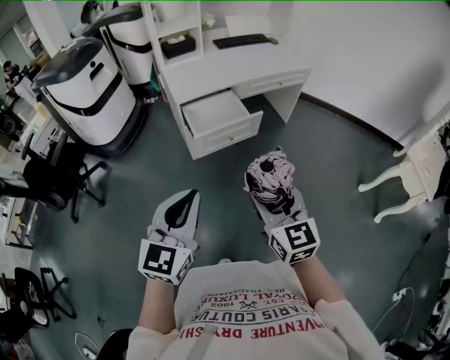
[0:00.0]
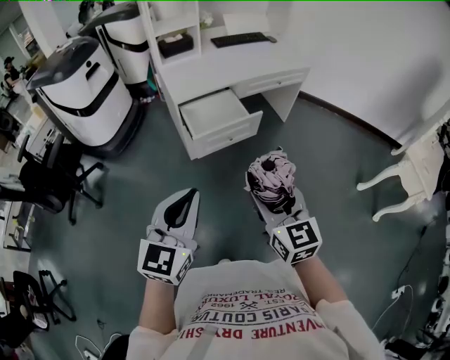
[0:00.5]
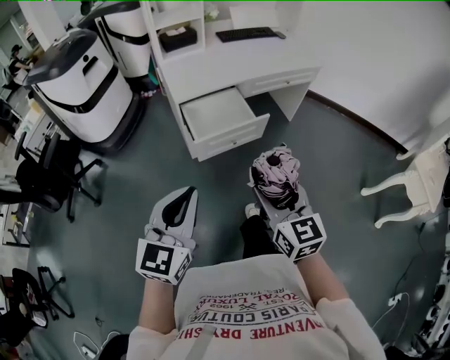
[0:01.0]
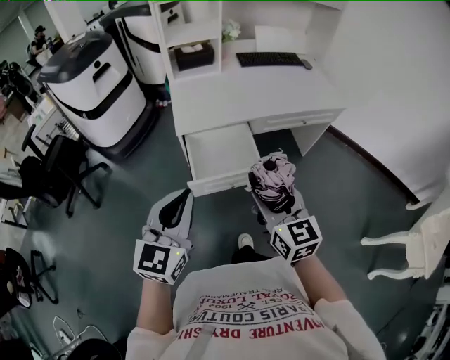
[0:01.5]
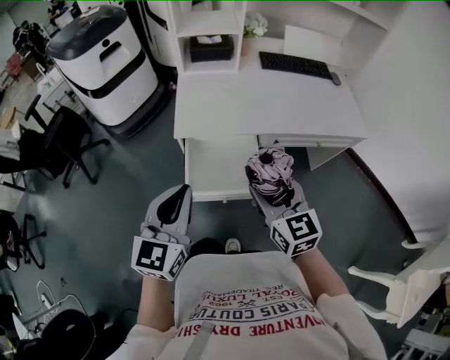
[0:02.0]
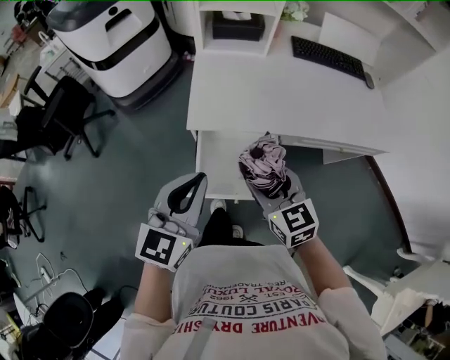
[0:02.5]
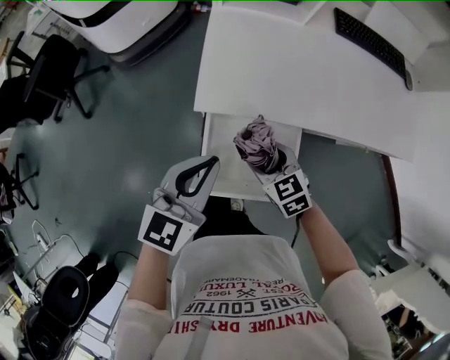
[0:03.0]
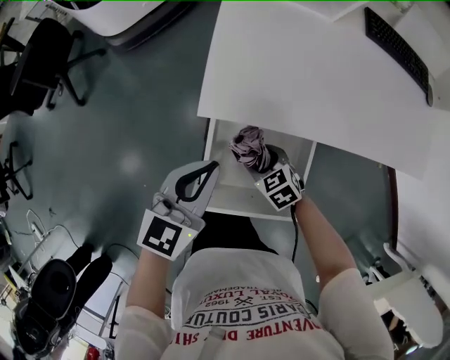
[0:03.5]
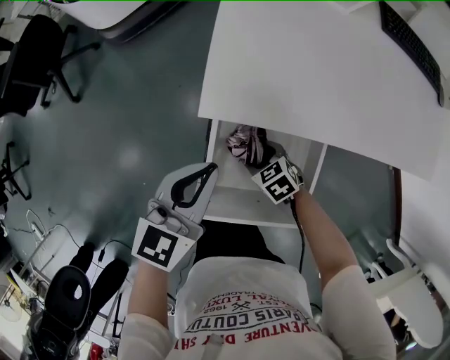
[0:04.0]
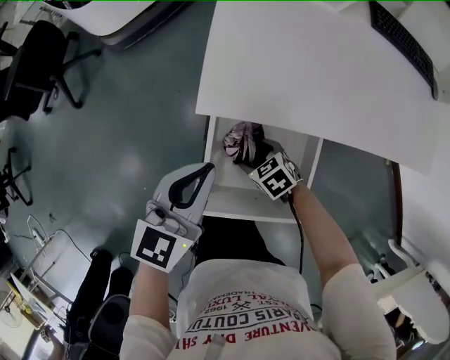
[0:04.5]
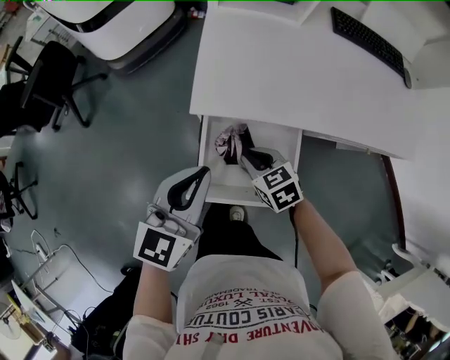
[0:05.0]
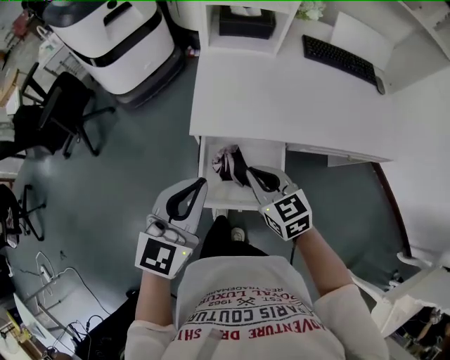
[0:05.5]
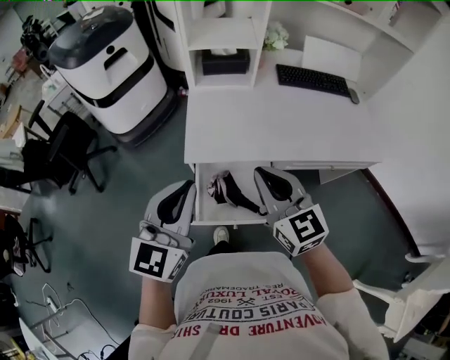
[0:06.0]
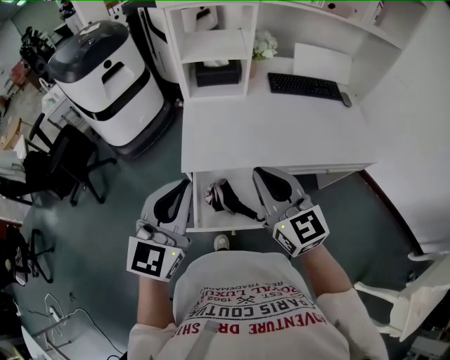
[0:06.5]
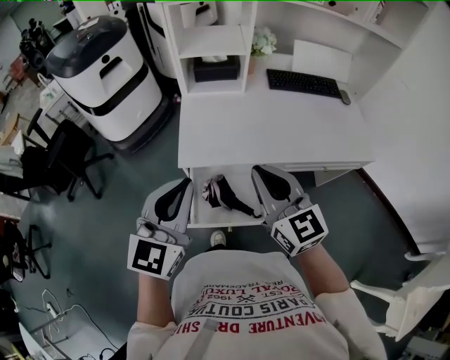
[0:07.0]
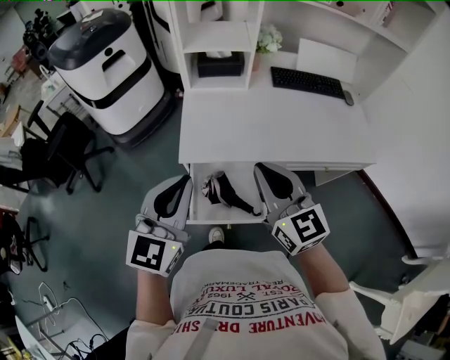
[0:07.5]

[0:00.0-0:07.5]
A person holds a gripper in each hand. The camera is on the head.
0:00.0 to 0:02.0: Both grippers travel together forward, some 40 cm. The left gripper turns by some 30 degrees, while the right gripper turns by roughly 20 degrees.
0:02.0 to 0:04.0: The right gripper goes some 50 cm downward, and tips its fingers downward by some 50 degrees, while the left gripper is displaced downward and forward by about 30 cm.
0:04.0 to 0:05.5: The right gripper goes some 30 cm upward, tips its fingers upward by some 30 degrees, and closes. Meanwhile the left gripper goes approximately 20 cm upward.
0:05.5 to 0:07.5: The left gripper goes about 10 cm upward; the right gripper heads upward, covering some 20 cm, and turns by some 30 degrees.

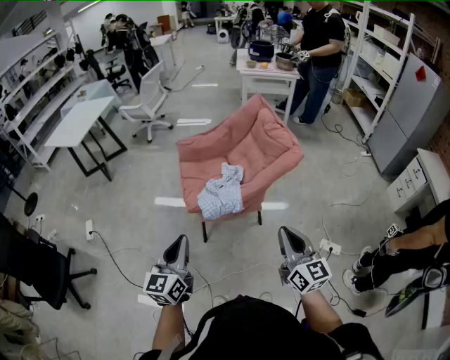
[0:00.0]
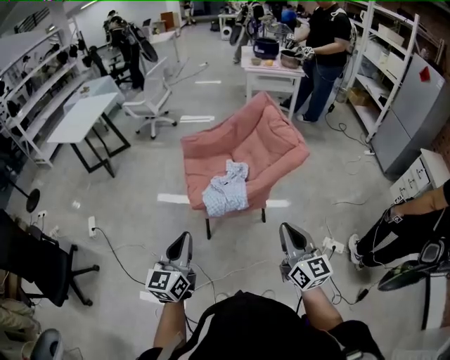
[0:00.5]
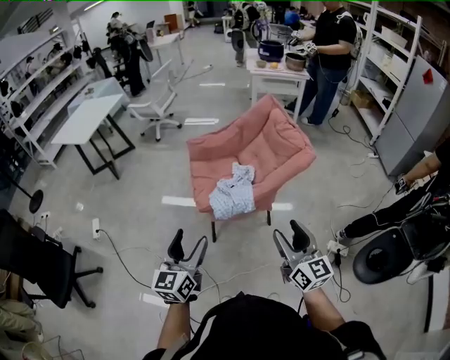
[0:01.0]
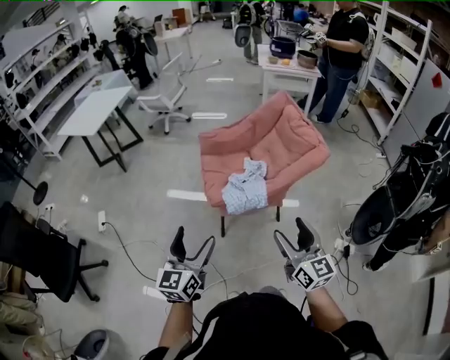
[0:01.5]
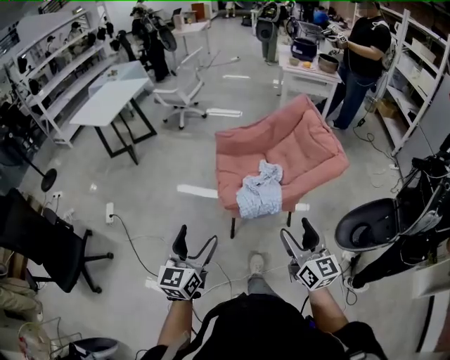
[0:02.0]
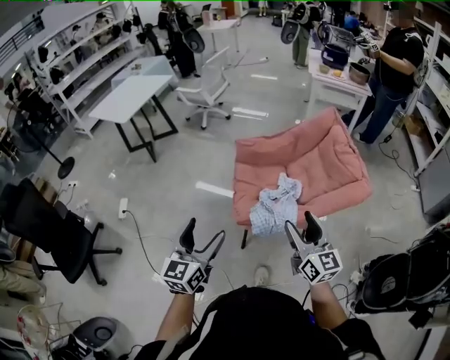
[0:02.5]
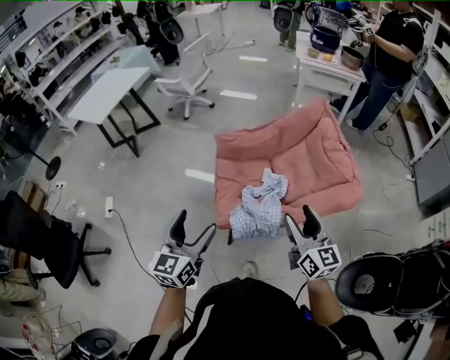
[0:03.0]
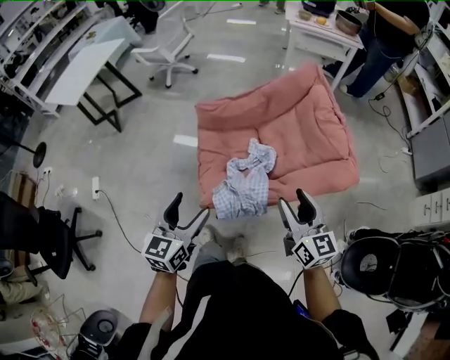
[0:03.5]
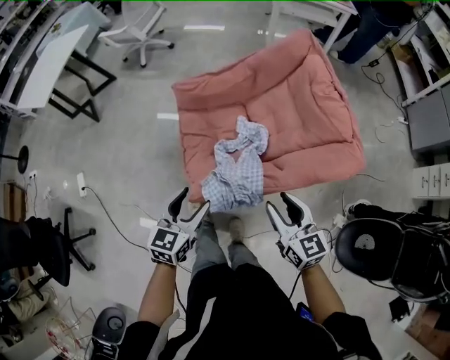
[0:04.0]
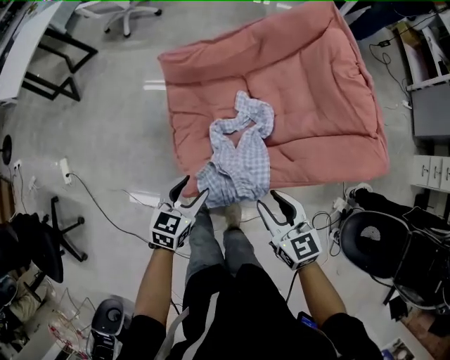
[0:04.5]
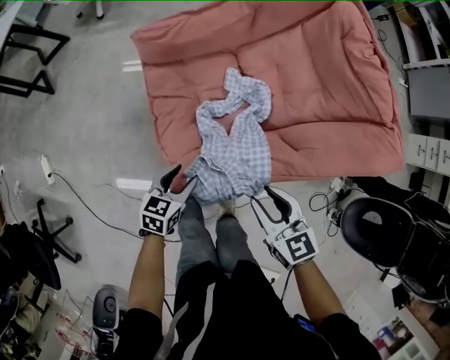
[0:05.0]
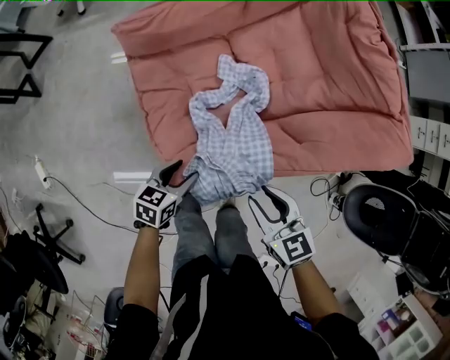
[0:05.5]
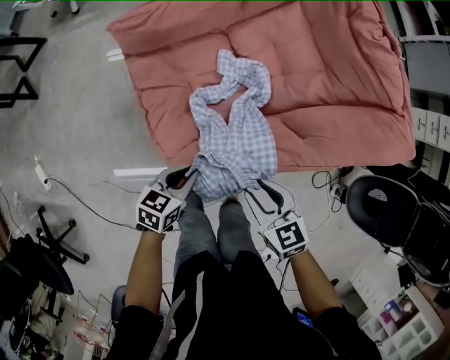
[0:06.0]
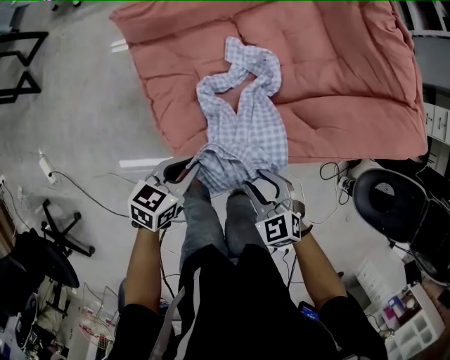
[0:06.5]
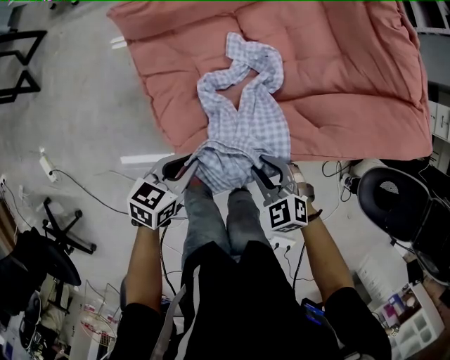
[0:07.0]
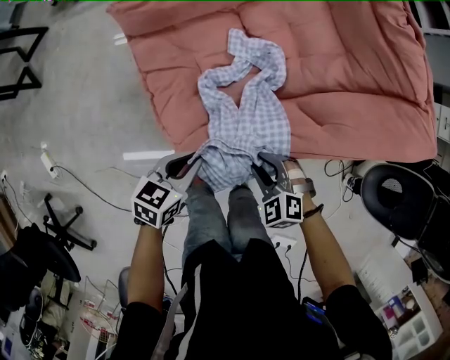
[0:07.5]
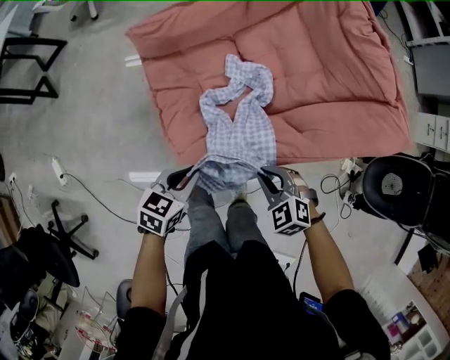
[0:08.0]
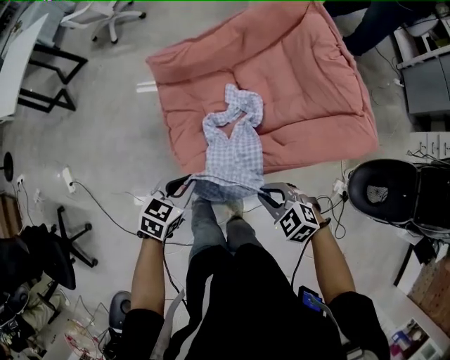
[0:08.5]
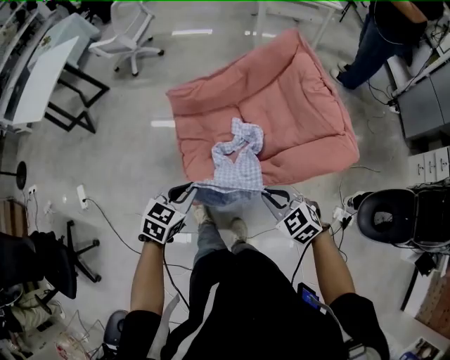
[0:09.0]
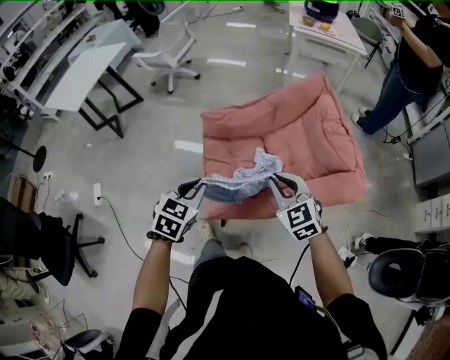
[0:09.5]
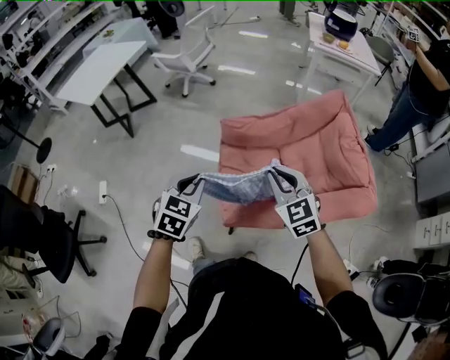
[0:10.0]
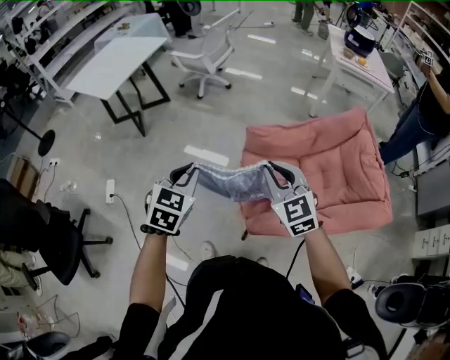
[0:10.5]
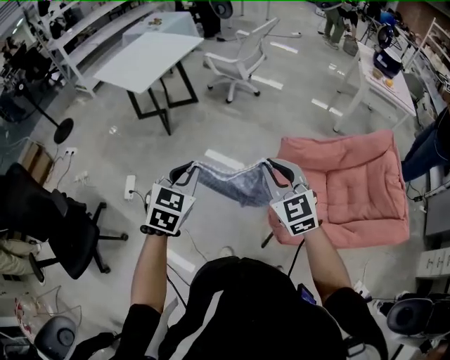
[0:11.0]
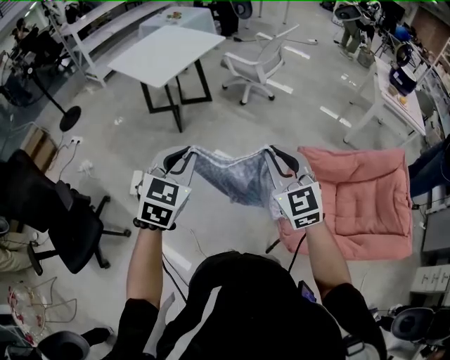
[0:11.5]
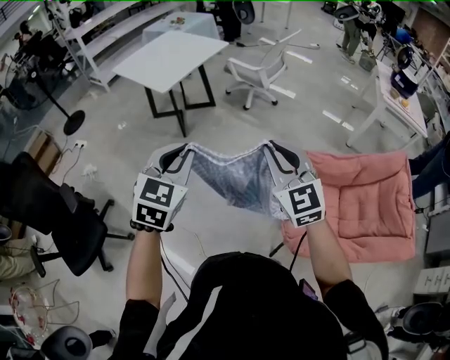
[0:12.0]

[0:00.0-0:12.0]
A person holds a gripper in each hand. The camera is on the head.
0:00.0 to 0:02.0: The left gripper moves to the left, roughly 10 cm, and opens its fingers. Meanwhile the right gripper heads to the left and forward, covering approximately 15 cm, and opens its fingers.
0:02.0 to 0:04.0: The right gripper goes approximately 30 cm forward and downward, and closes its fingers. The left gripper goes roughly 40 cm forward, downward and to the right, and changes its angle by some 30 degrees.
0:04.0 to 0:06.0: The two grippers go about 25 cm downward. The left gripper turns by some 40 degrees, and closes. Meanwhile the right gripper rotates approximately 20 degrees.
0:06.0 to 0:08.0: The left gripper heads upward, covering roughly 5 cm; the right gripper moves roughly 10 cm downward and comes back, and rotates about 40 degrees.
0:08.0 to 0:10.0: The left gripper shifts roughly 35 cm upward and to the left, and swivels about 40 degrees. Meanwhile the right gripper moves upward, roughly 35 cm, and points its fingers roughly 30 degrees further upward.
0:10.0 to 0:12.0: The pair of grippers is taken to the left, about 50 cm. The right gripper turns by about 20 degrees, while the left gripper changes its angle by about 20 degrees.

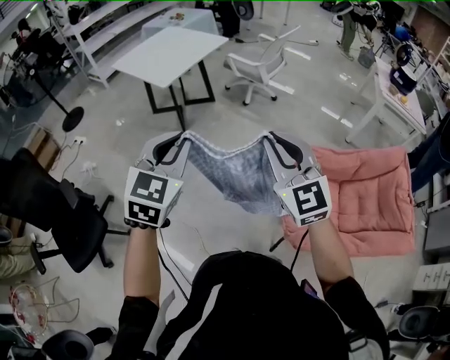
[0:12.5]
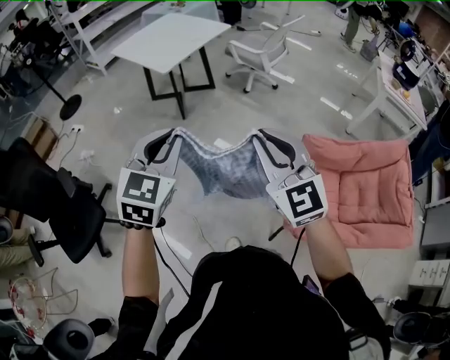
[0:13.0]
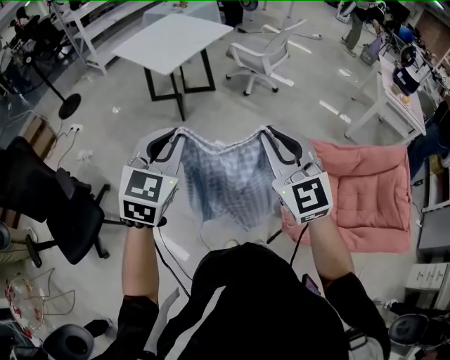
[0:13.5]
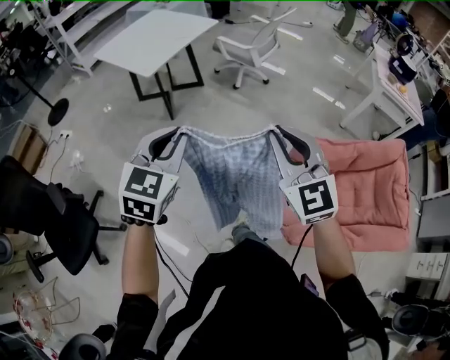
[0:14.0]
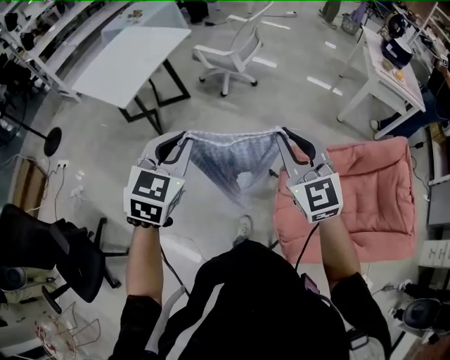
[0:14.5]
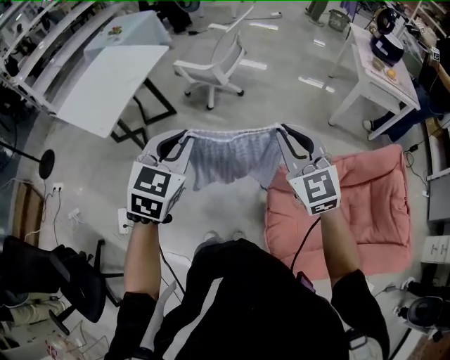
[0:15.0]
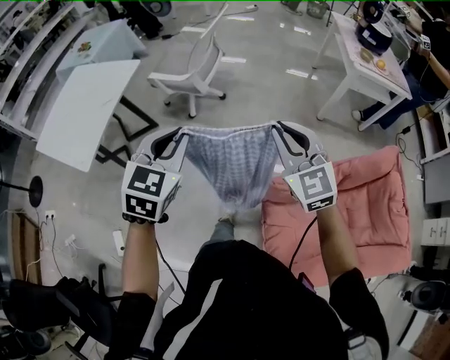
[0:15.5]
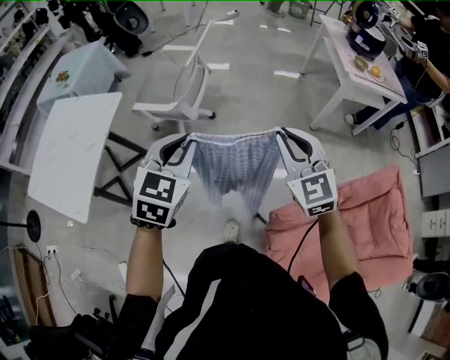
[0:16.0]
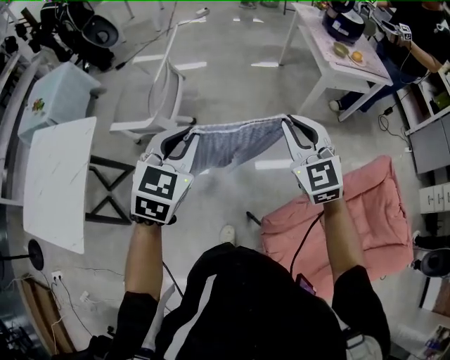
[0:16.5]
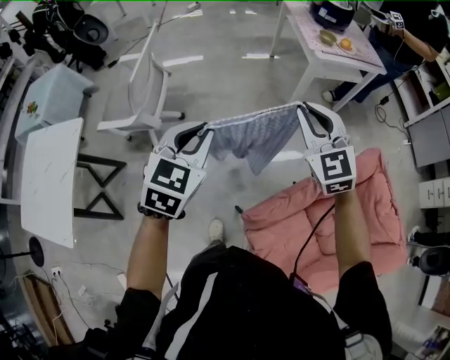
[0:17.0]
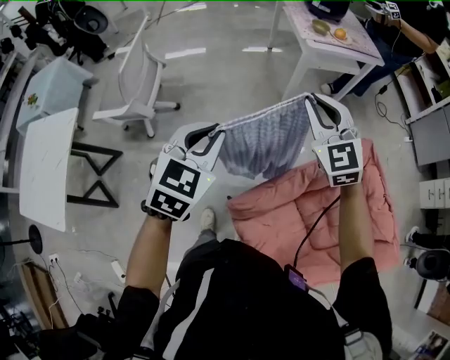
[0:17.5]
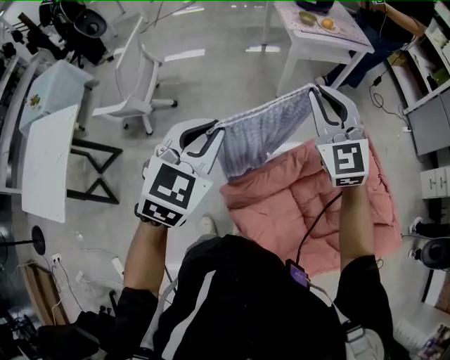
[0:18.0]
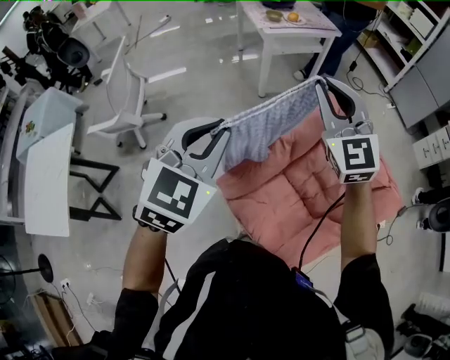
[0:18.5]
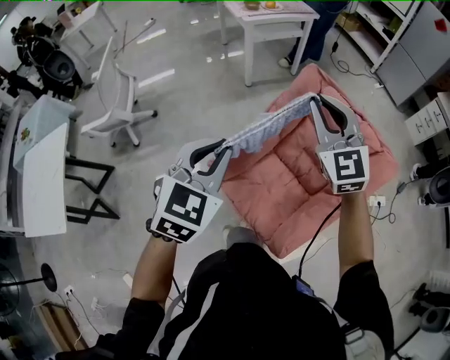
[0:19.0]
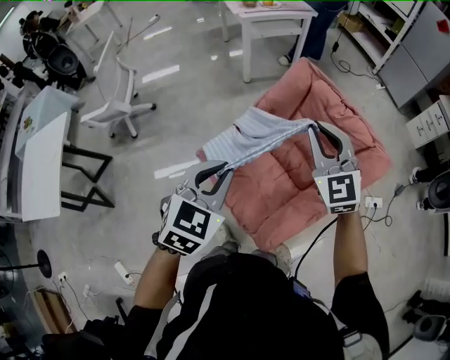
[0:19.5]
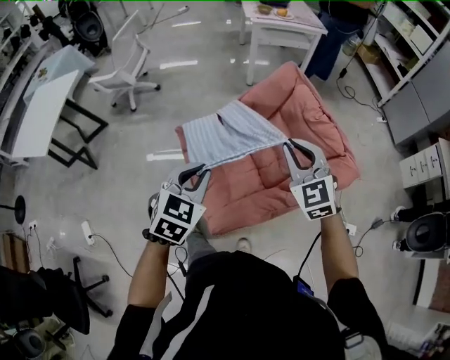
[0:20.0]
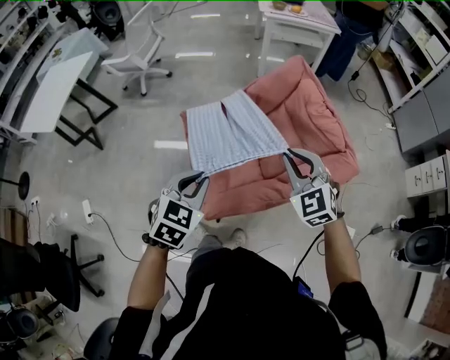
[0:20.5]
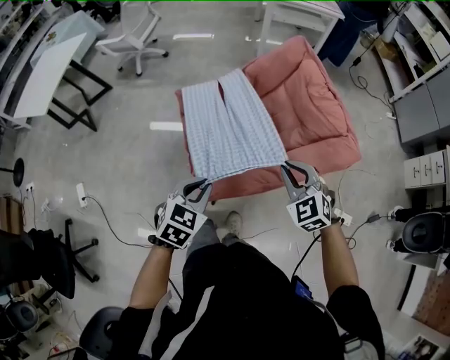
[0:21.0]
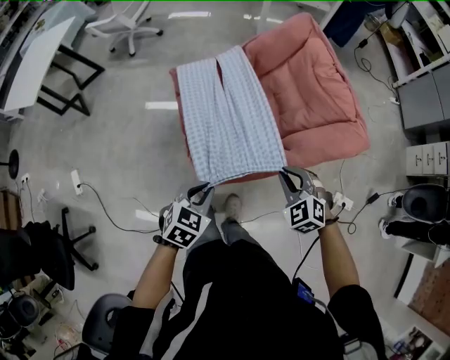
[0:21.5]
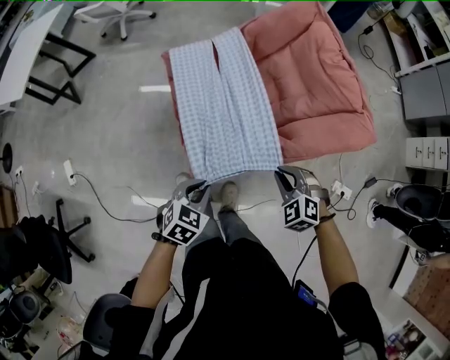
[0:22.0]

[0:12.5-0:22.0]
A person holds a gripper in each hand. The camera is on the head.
0:12.5 to 0:14.5: Both grippers move forward and to the right, some 25 cm.
0:14.5 to 0:16.5: The pair of grippers is taken some 50 cm. The right gripper turns by roughly 30 degrees. Meanwhile the left gripper turns by some 30 degrees.
0:16.5 to 0:18.0: Both grippers move to the right, roughly 30 cm.
0:18.0 to 0:20.0: The two grippers travel together, backward and to the right, about 50 cm.
0:20.0 to 0:22.0: The grippers both shift downward and backward by roughly 35 cm. The right gripper points its fingers approximately 30 degrees further downward; the left gripper changes its angle by roughly 20 degrees.
